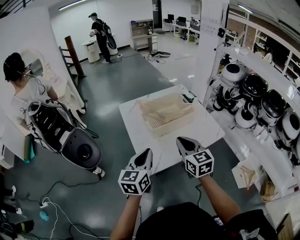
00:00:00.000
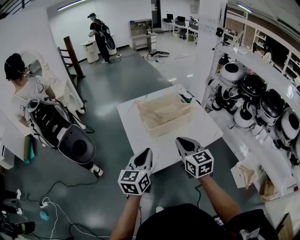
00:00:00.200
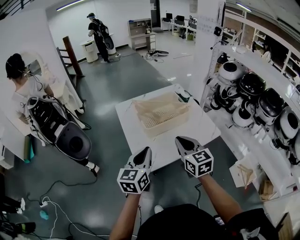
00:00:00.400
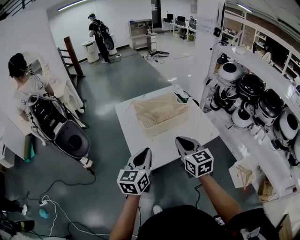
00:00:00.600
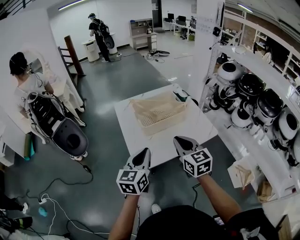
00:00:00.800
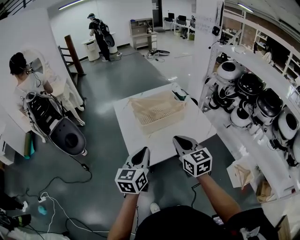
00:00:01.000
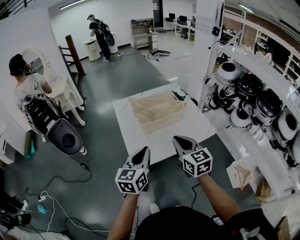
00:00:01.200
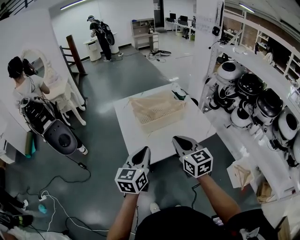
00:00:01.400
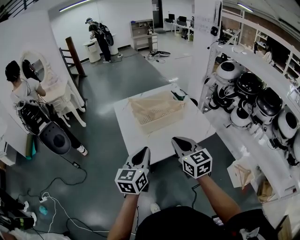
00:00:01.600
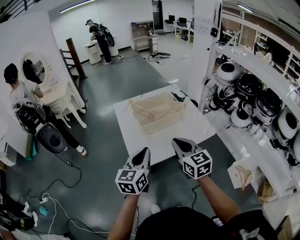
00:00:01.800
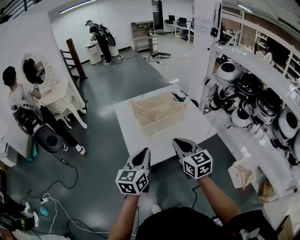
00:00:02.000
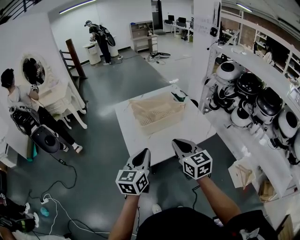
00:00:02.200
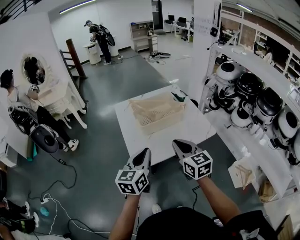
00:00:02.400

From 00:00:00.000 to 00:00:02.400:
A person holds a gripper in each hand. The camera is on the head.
From 00:00:00.000 to 00:00:01.200: The two grippers go some 5 cm to the right.
From 00:00:01.200 to 00:00:02.400: The grippers make only small movements.

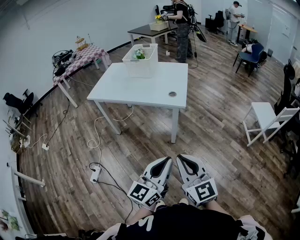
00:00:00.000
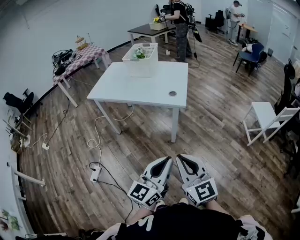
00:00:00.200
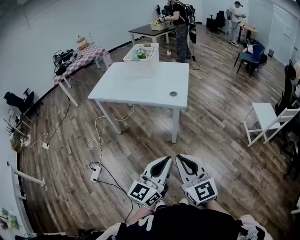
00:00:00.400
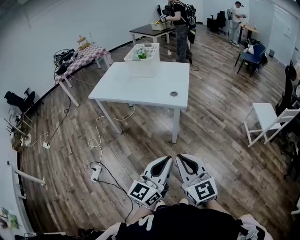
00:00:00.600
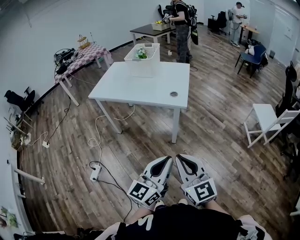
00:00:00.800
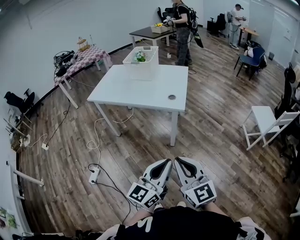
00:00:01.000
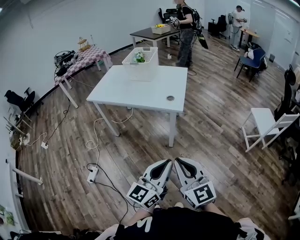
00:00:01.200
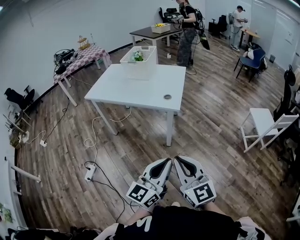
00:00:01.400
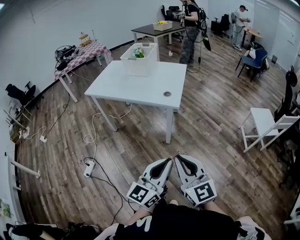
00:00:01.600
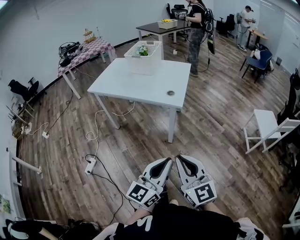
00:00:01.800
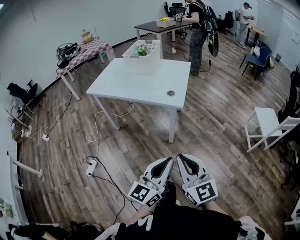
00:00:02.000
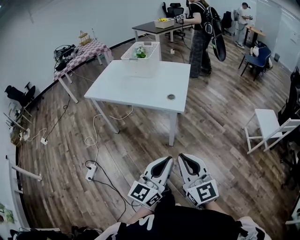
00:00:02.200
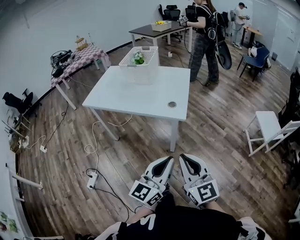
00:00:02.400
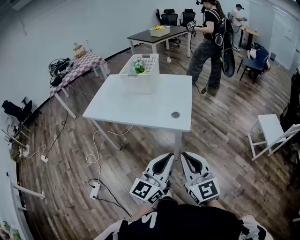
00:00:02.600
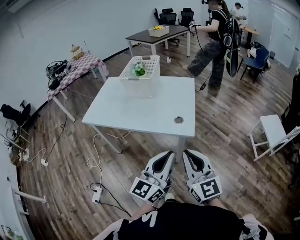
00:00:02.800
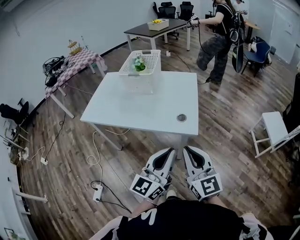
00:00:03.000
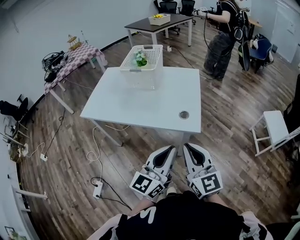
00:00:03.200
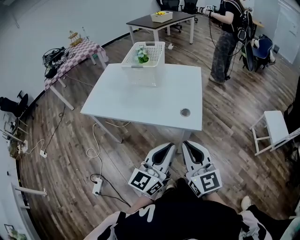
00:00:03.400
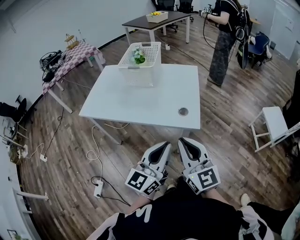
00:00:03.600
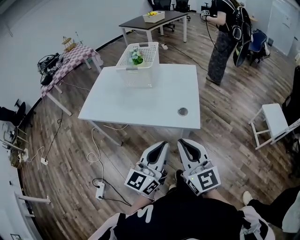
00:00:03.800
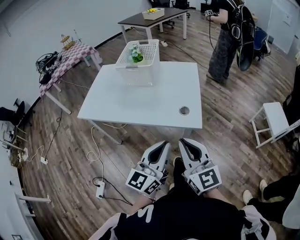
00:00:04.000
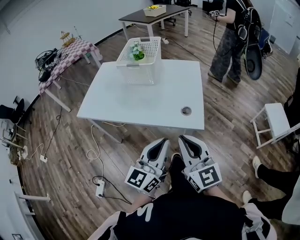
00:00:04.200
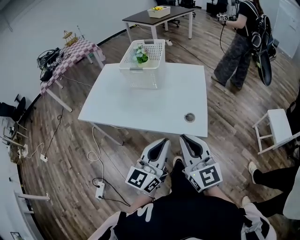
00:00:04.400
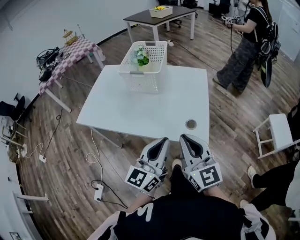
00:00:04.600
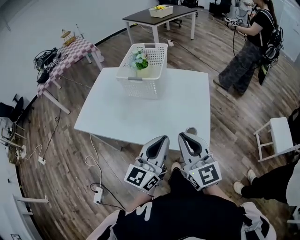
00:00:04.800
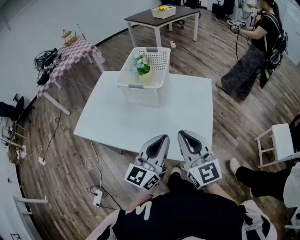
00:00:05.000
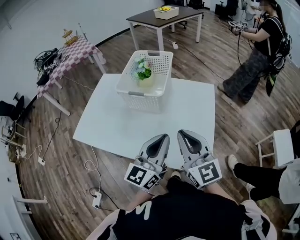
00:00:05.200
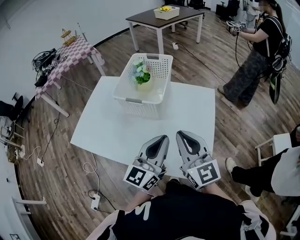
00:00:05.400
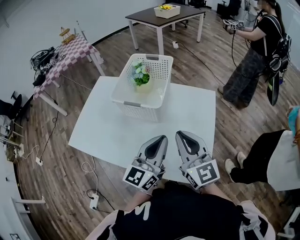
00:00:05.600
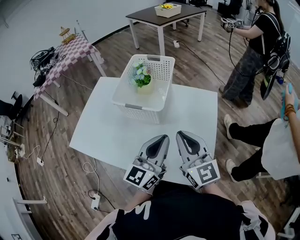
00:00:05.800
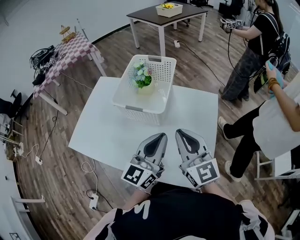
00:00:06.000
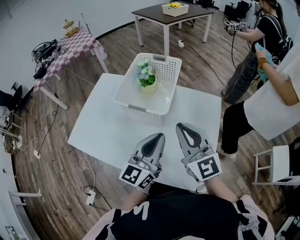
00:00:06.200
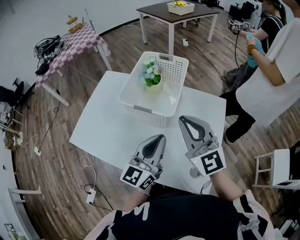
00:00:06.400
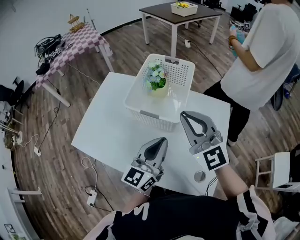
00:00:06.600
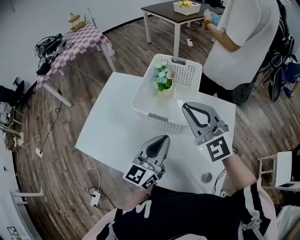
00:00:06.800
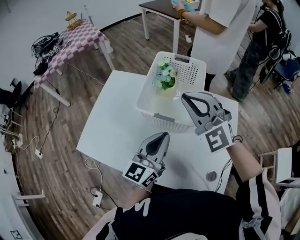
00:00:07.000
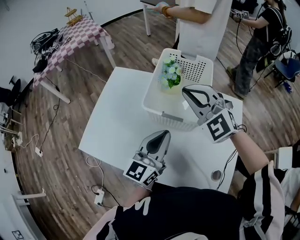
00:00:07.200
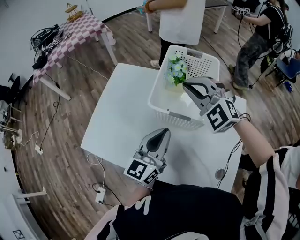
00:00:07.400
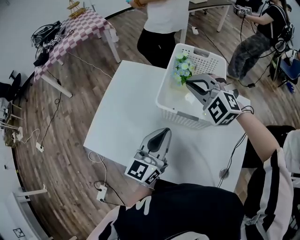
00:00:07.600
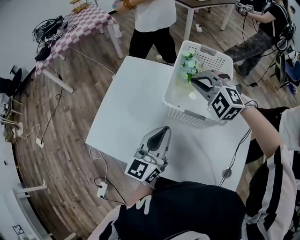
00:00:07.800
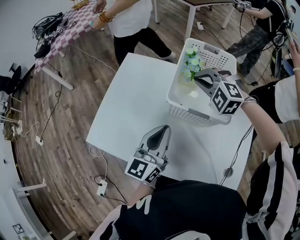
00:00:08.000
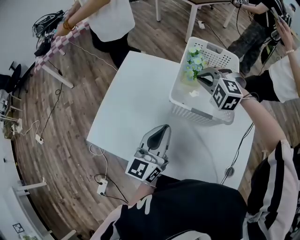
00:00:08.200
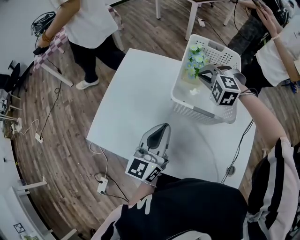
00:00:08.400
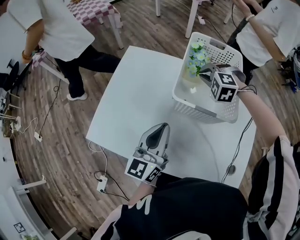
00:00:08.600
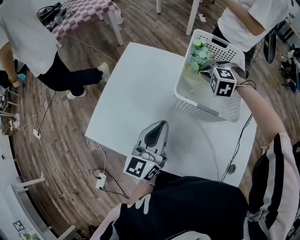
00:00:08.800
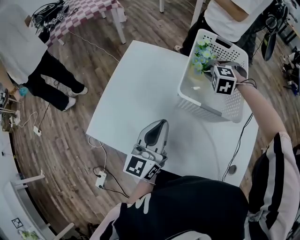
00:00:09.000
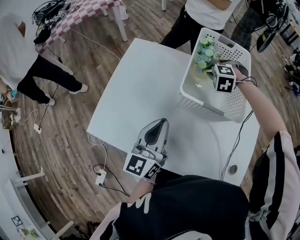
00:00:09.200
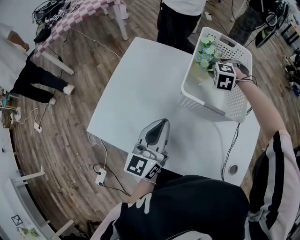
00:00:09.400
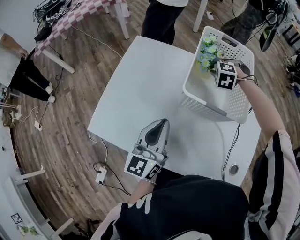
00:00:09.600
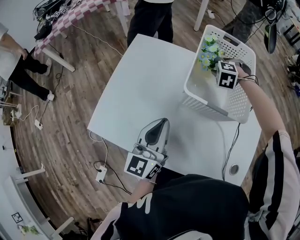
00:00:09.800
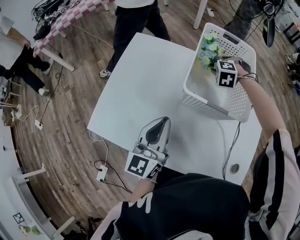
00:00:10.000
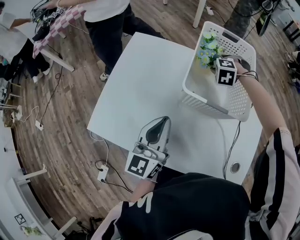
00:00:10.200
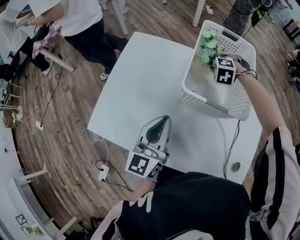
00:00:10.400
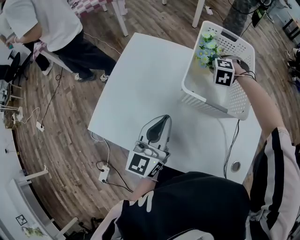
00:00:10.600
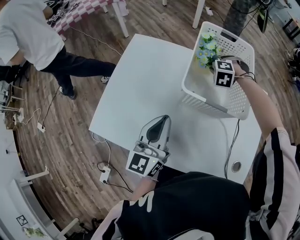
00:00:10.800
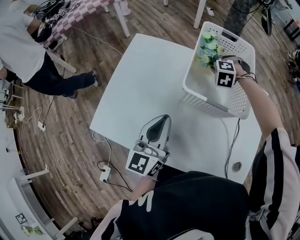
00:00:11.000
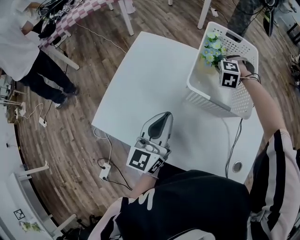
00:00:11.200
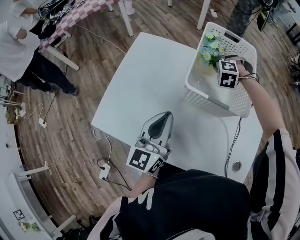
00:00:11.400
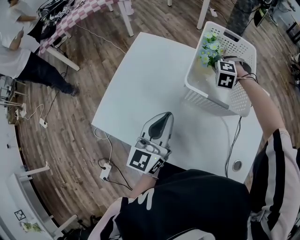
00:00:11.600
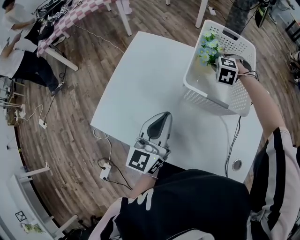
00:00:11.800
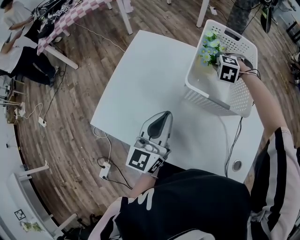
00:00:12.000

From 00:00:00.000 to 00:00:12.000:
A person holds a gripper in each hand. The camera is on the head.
From 00:00:00.000 to 00:00:01.600: The grippers both shift to the right by approximately 5 cm.
From 00:00:01.600 to 00:00:03.000: The two grippers go roughly 25 cm forward.
From 00:00:03.000 to 00:00:04.400: The two grippers go some 10 cm forward and to the left.
From 00:00:04.400 to 00:00:06.000: Both grippers move forward, some 30 cm.
From 00:00:06.000 to 00:00:07.600: The right gripper is displaced forward and to the left by about 30 cm, and twists approximately 50 degrees counterclockwise, seen from behind, while the left gripper moves to the left and forward, roughly 20 cm.
From 00:00:07.600 to 00:00:09.000: The right gripper shifts about 20 cm downward and forward, and tips its fingers downward by about 30 degrees. Meanwhile the left gripper travels to the left by about 5 cm.
From 00:00:09.000 to 00:00:12.000: The grippers make only small movements.

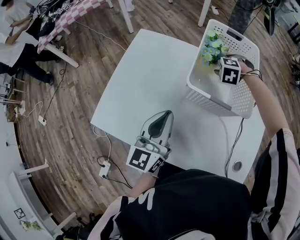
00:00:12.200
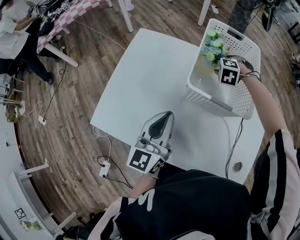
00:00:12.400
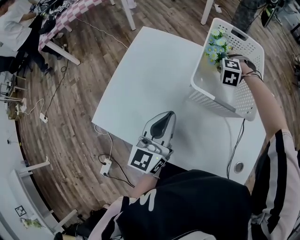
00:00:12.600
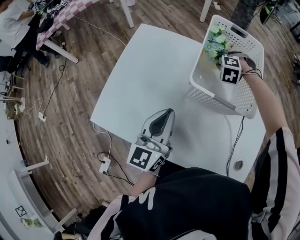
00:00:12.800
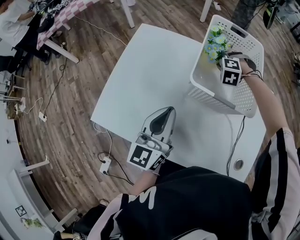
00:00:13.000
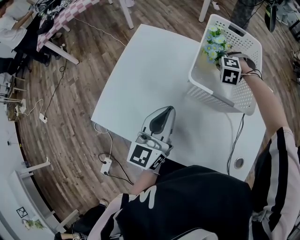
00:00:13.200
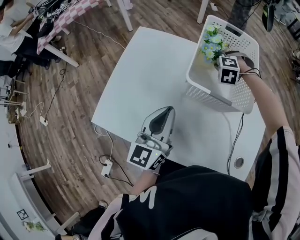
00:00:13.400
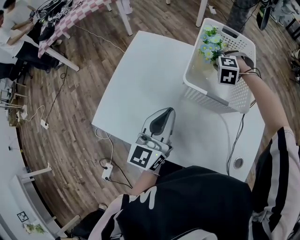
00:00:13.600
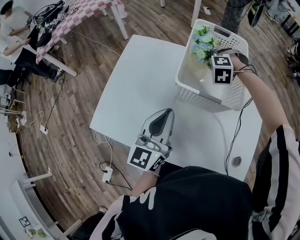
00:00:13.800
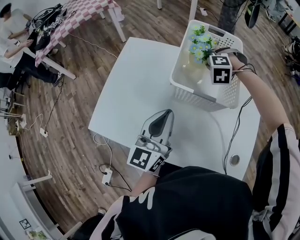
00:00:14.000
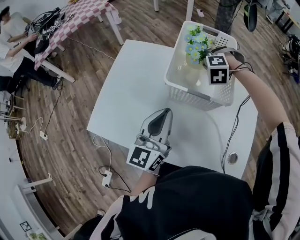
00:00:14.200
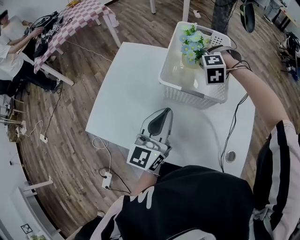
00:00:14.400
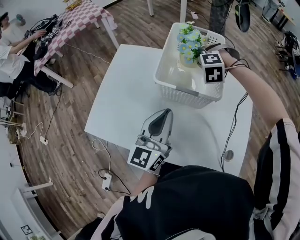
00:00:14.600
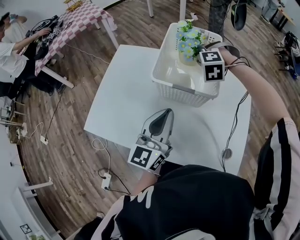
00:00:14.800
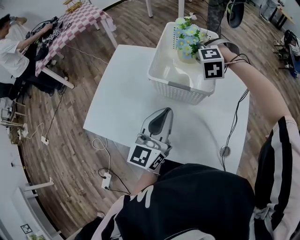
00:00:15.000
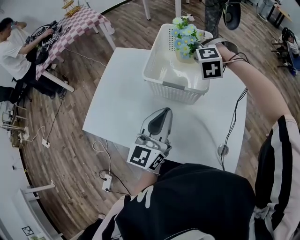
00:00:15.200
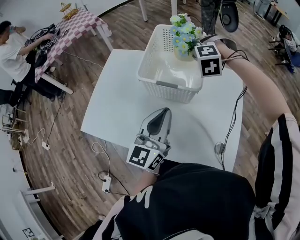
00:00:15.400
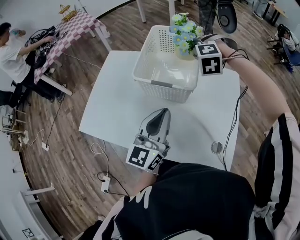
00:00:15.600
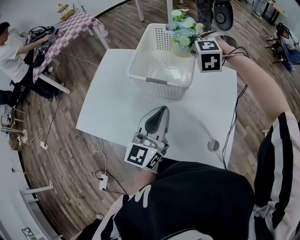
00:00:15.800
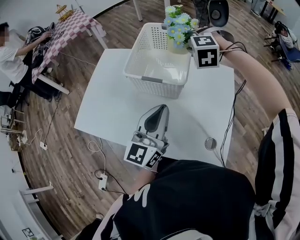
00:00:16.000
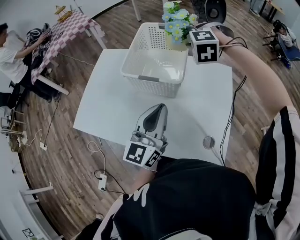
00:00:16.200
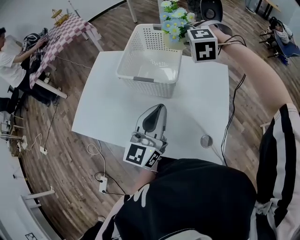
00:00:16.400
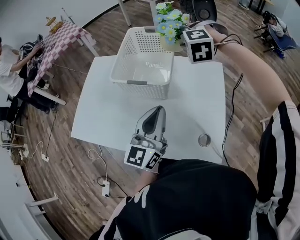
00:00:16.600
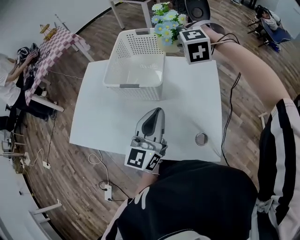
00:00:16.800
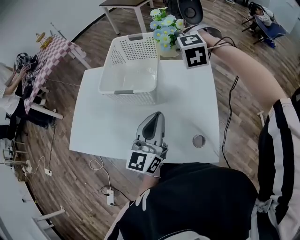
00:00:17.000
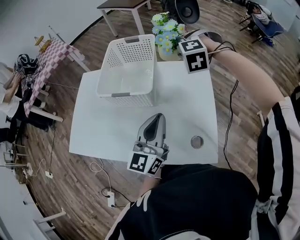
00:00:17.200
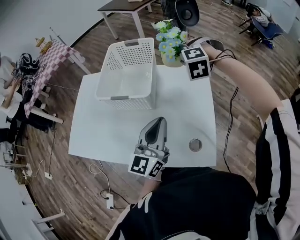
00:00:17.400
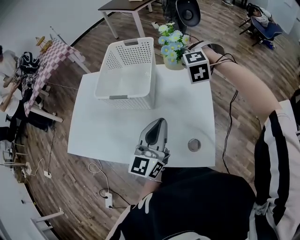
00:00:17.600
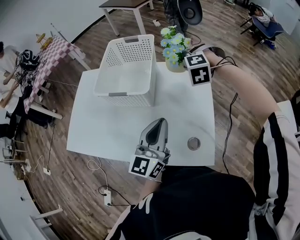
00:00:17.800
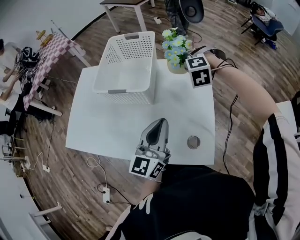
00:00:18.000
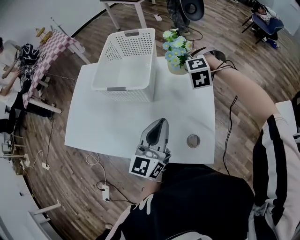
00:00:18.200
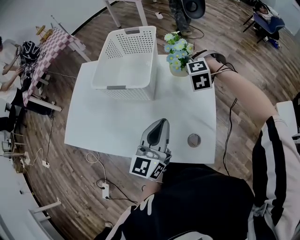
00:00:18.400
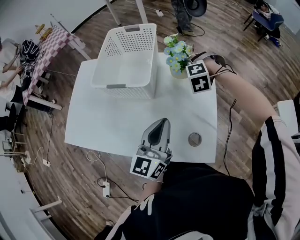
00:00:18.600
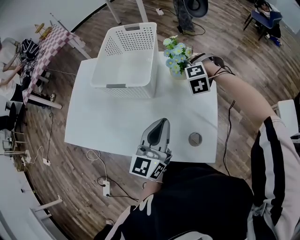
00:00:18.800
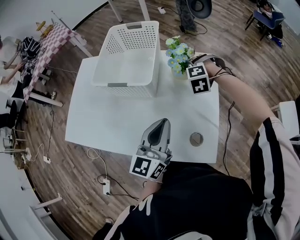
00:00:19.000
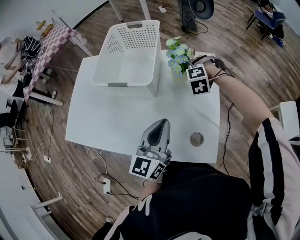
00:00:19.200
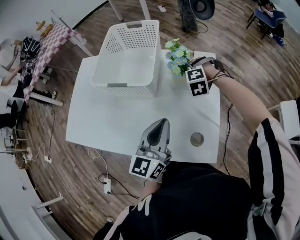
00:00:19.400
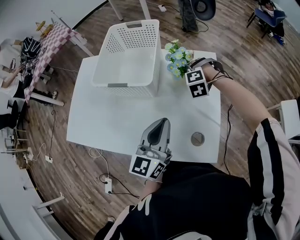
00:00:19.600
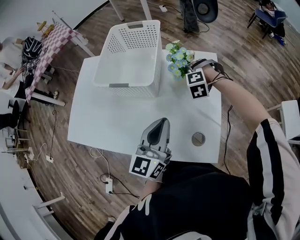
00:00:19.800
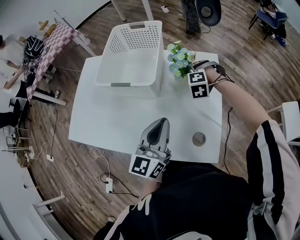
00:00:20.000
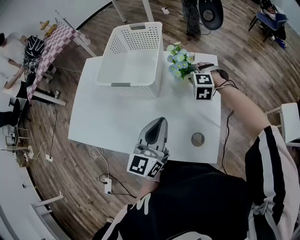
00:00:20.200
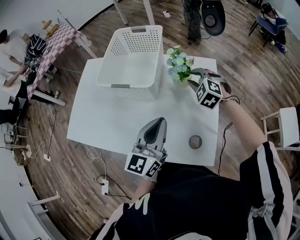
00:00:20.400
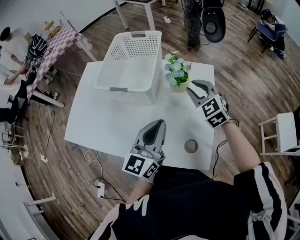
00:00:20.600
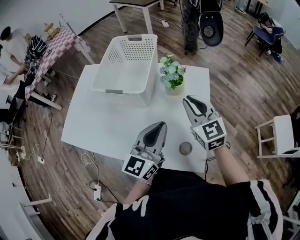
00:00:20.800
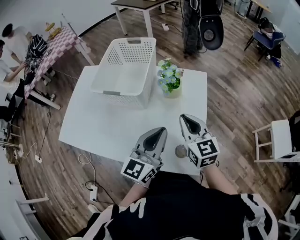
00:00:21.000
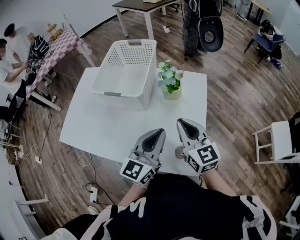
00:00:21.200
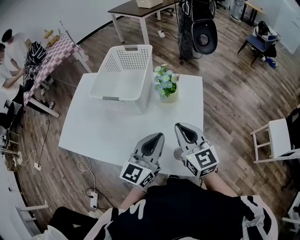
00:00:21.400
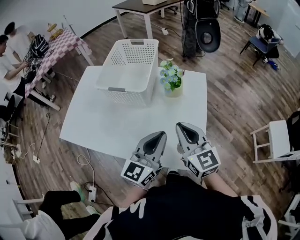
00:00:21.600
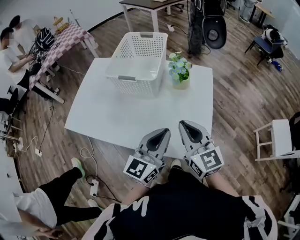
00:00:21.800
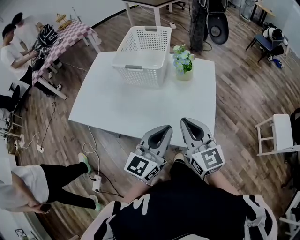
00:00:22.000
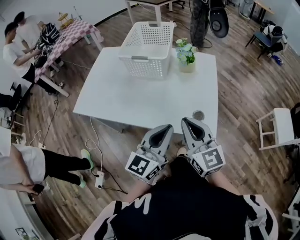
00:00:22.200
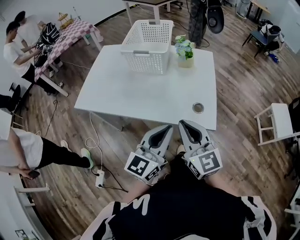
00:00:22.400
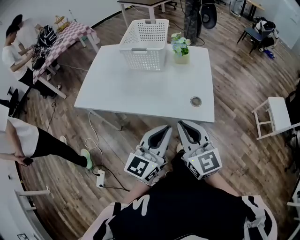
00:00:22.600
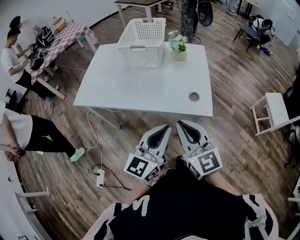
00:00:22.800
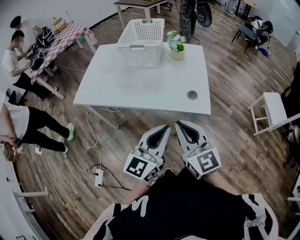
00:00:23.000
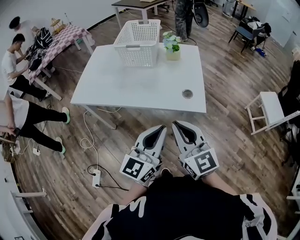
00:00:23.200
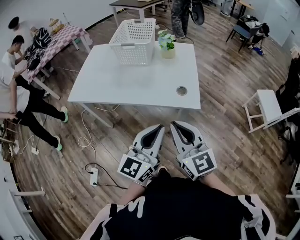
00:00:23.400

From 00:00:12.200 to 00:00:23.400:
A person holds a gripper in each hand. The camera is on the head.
From 00:00:12.200 to 00:00:13.800: The grippers move only a little.
From 00:00:13.800 to 00:00:15.400: The right gripper travels upward and to the right by approximately 15 cm. The left gripper travels to the right by approximately 15 cm.
From 00:00:15.400 to 00:00:17.000: The grippers both shift to the right by some 10 cm.
From 00:00:17.000 to 00:00:18.600: The left gripper moves some 5 cm. The right gripper travels downward by about 15 cm.
From 00:00:18.600 to 00:00:20.200: The grippers move only a little.
From 00:00:20.200 to 00:00:21.800: The right gripper moves backward and upward, some 30 cm, angles its fingers upward, by about 50 degrees, and closes, while the left gripper heads backward, covering approximately 10 cm.
From 00:00:21.800 to 00:00:23.400: Both grippers travel together backward, roughly 30 cm.
